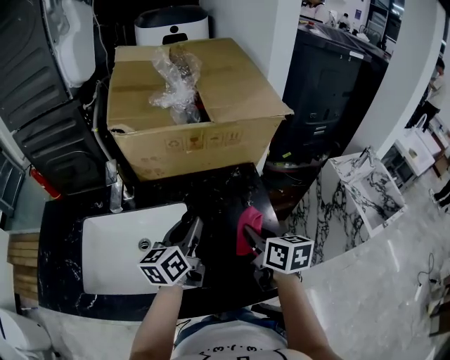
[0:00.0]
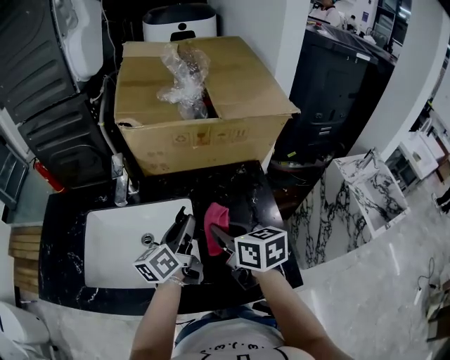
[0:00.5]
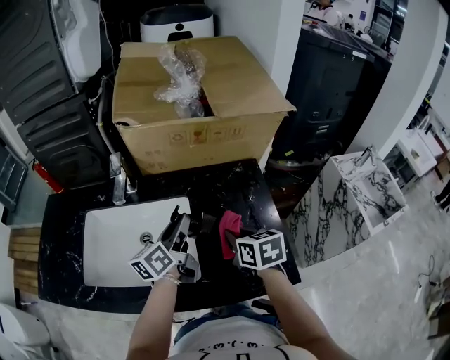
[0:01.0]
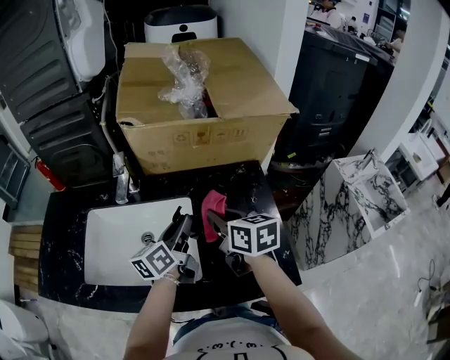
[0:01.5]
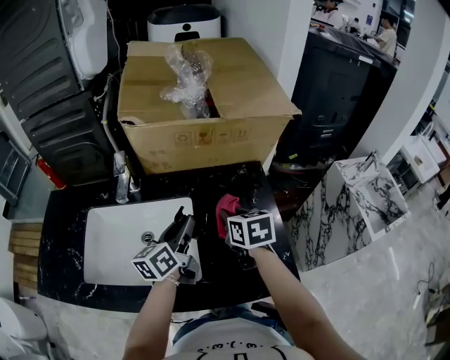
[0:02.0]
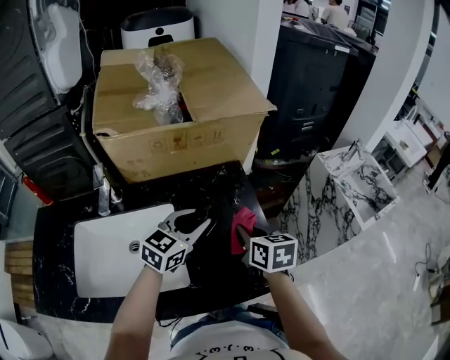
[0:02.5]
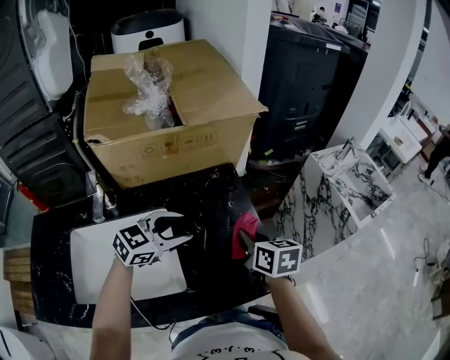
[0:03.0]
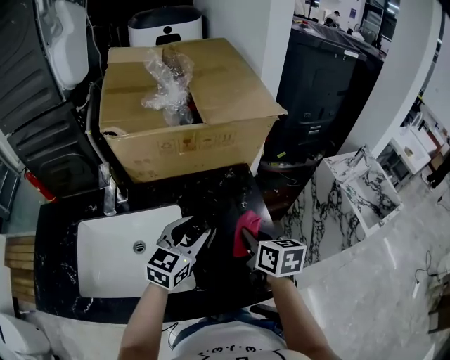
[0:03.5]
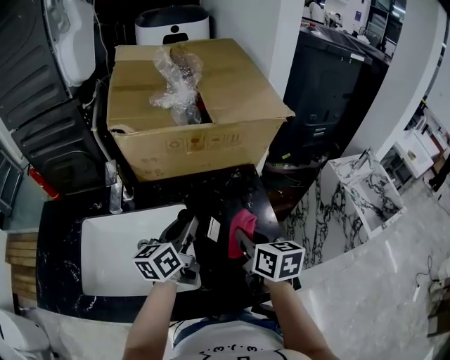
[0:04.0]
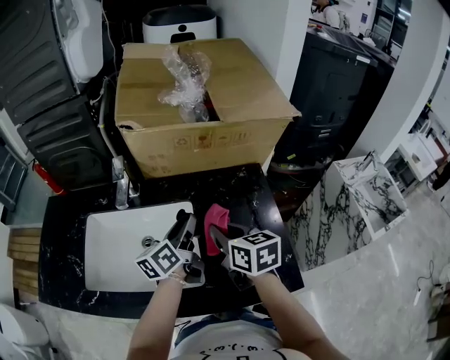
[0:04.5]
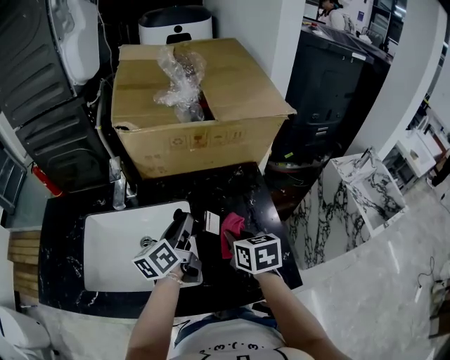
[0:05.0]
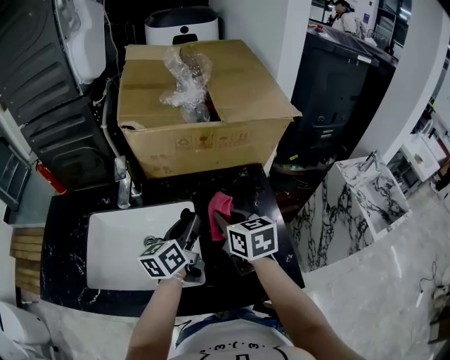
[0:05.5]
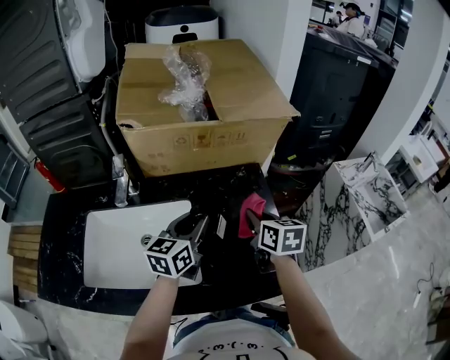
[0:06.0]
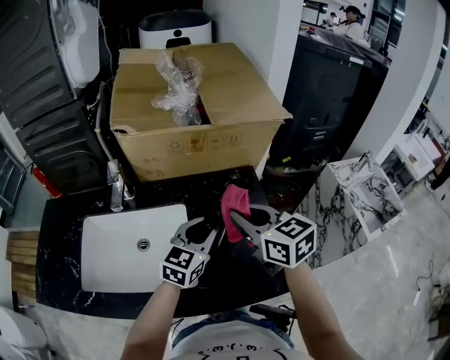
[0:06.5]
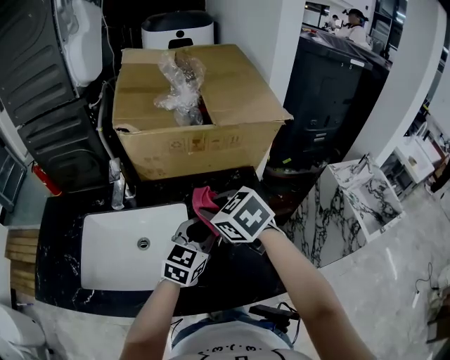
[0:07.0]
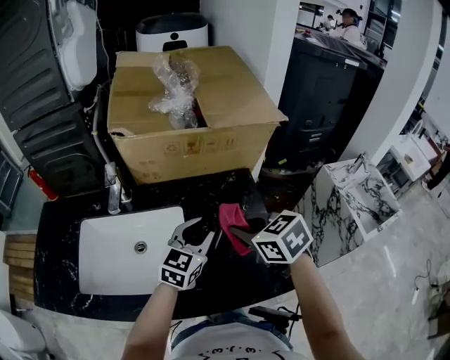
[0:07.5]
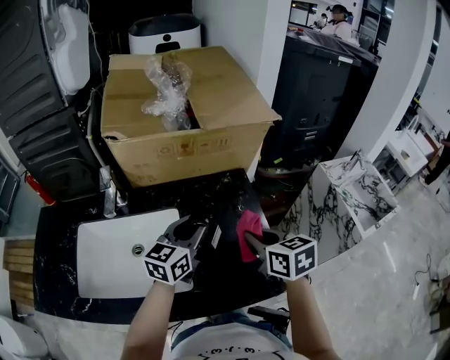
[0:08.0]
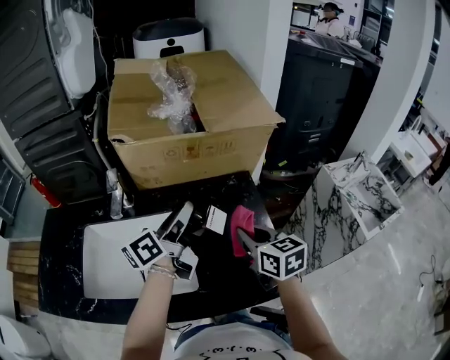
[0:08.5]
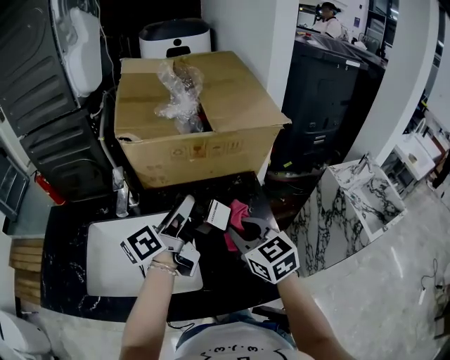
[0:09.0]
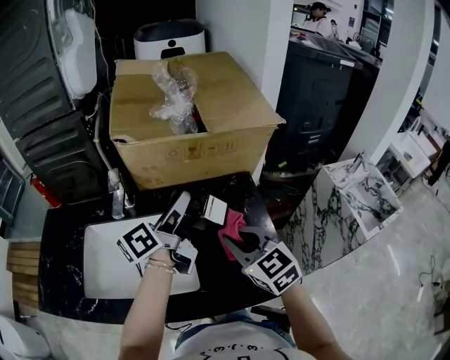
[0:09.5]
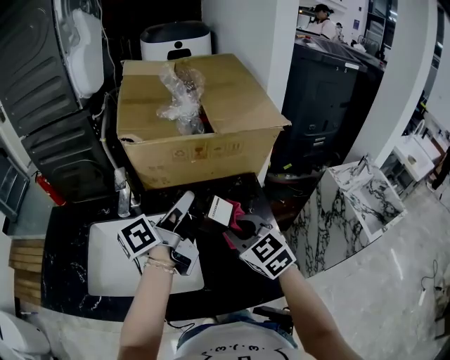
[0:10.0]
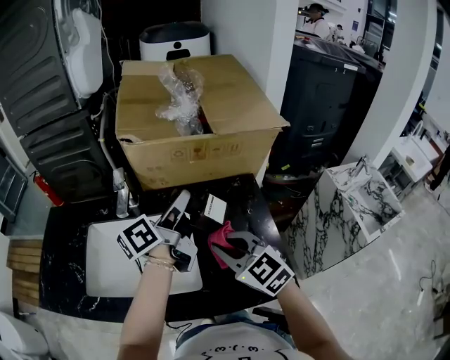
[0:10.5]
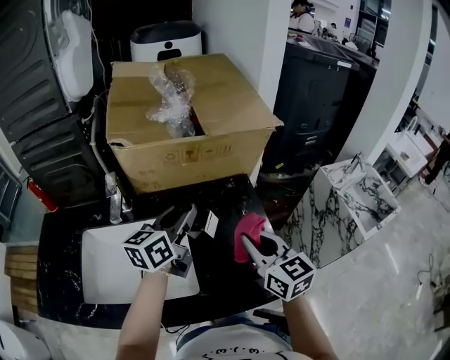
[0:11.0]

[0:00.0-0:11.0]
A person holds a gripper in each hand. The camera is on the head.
0:00.0 to 0:02.0: The right gripper swings left and right, some 10 cm each way, with 2 reversals.
0:02.0 to 0:03.5: The right gripper moves about 10 cm, while the left gripper changes place by roughly 10 cm, and twists about 40 degrees clockwise, seen from behind.
0:03.5 to 0:05.5: The right gripper goes left and right, some 10 cm each way, reversing 2 times. The left gripper is displaced to the left by approximately 5 cm, changes its angle by roughly 40 degrees, and closes up.
0:05.5 to 0:07.5: The left gripper moves to the right, approximately 10 cm, and rotates around the line of its fingers by approximately 40 degrees, clockwise from behind; the right gripper swings left and right, about 15 cm each way, with 2 reversals, and changes its angle by approximately 20 degrees.
0:07.5 to 0:09.0: The left gripper heads upward and to the left, covering approximately 10 cm, and rolls counterclockwise, seen from behind, by about 60 degrees, while the right gripper reaches some 5 cm to the right, then returns, and rotates roughly 20 degrees.
0:09.0 to 0:11.0: The right gripper is displaced to the right by roughly 5 cm. The left gripper turns by roughly 30 degrees.

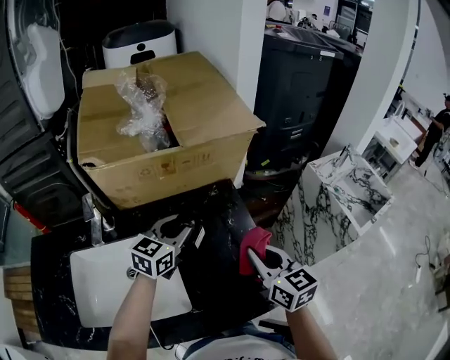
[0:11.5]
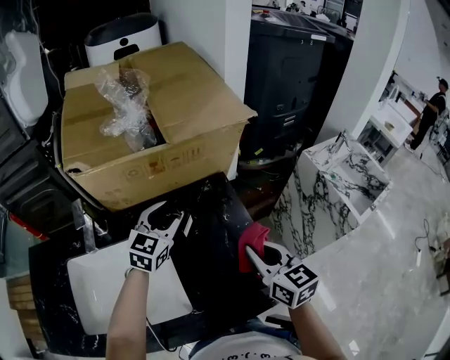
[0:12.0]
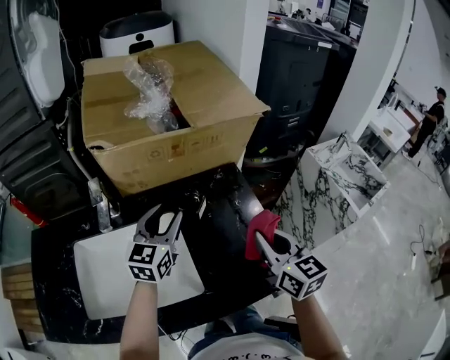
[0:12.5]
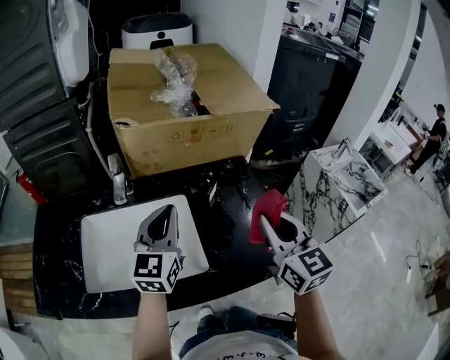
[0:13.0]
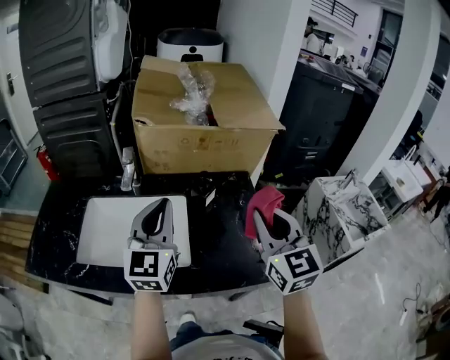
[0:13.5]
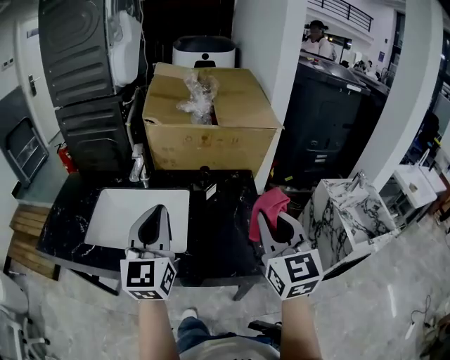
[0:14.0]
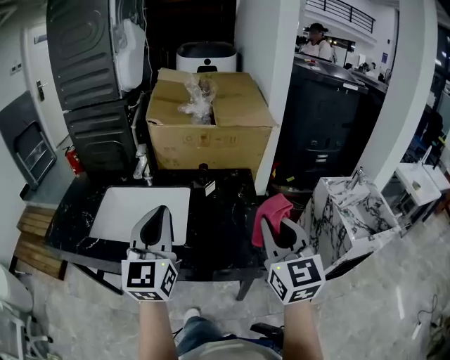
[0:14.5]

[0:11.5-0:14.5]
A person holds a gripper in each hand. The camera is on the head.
0:11.5 to 0:13.0: The left gripper goes some 20 cm backward, to the left and upward, rotates some 30 degrees, and closes up. The right gripper moves upward and backward, some 10 cm.
0:13.0 to 0:14.5: The left gripper heads backward and upward, covering about 20 cm, and turns by approximately 20 degrees, while the right gripper is displaced backward, to the right and upward by about 15 cm.

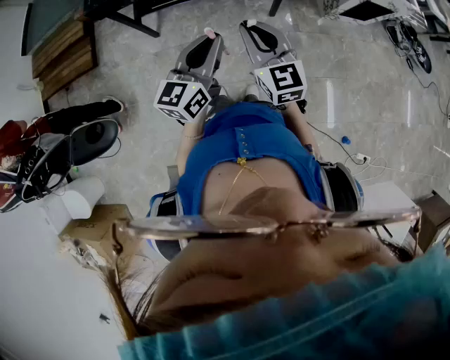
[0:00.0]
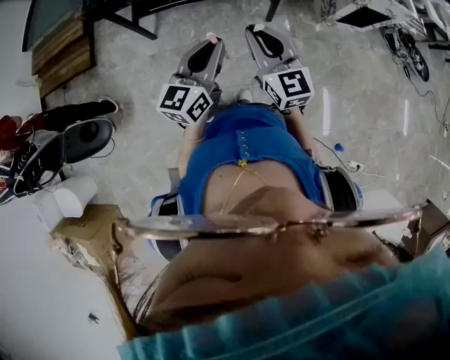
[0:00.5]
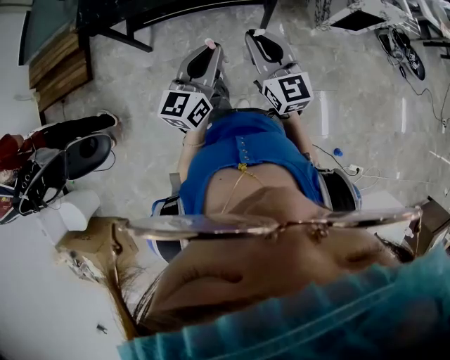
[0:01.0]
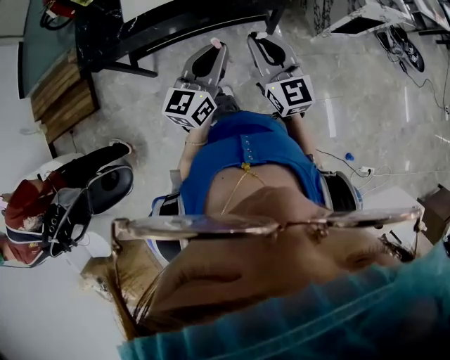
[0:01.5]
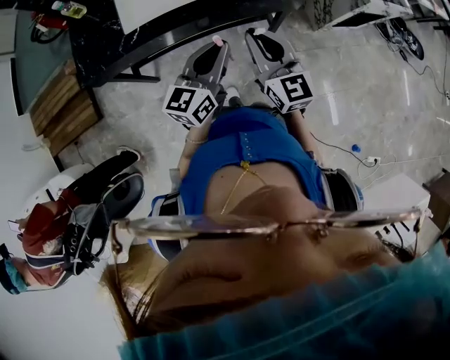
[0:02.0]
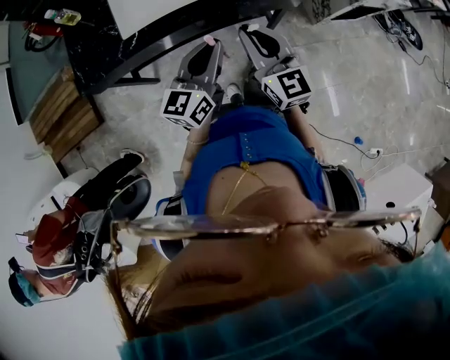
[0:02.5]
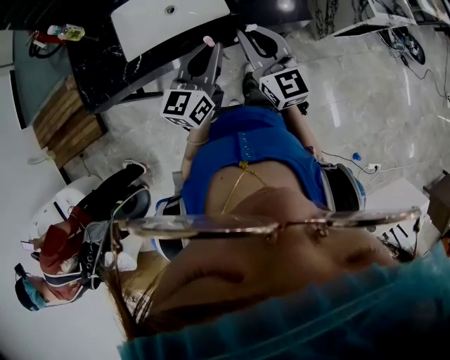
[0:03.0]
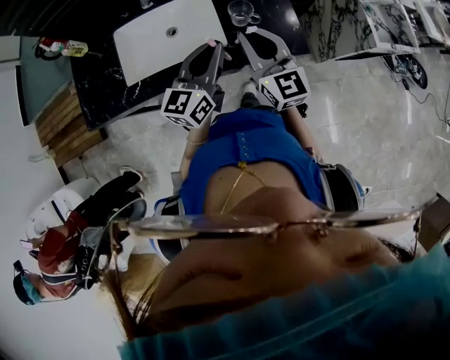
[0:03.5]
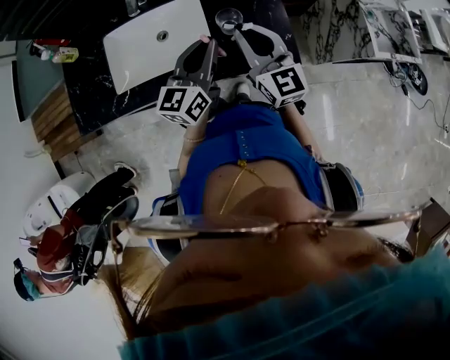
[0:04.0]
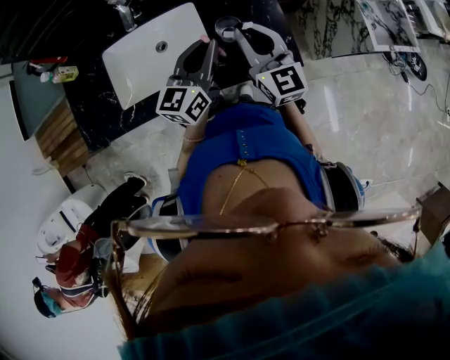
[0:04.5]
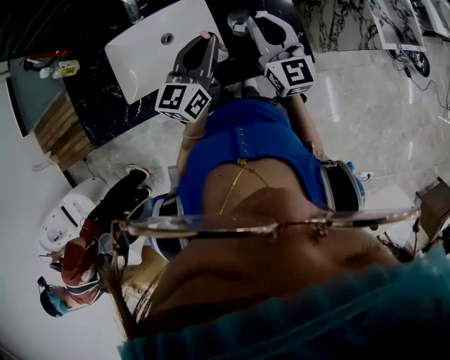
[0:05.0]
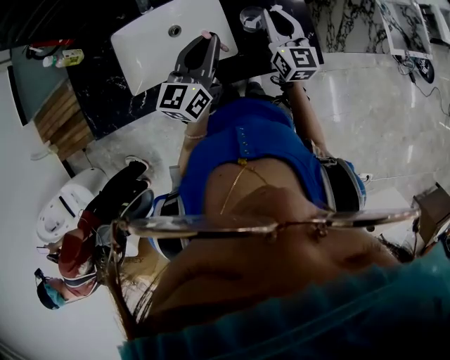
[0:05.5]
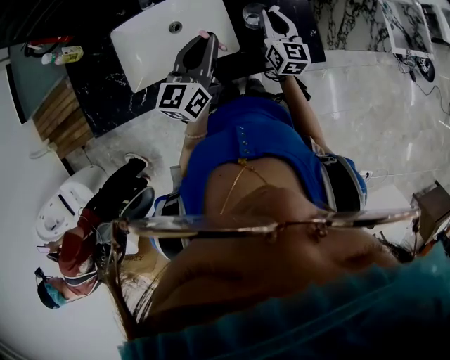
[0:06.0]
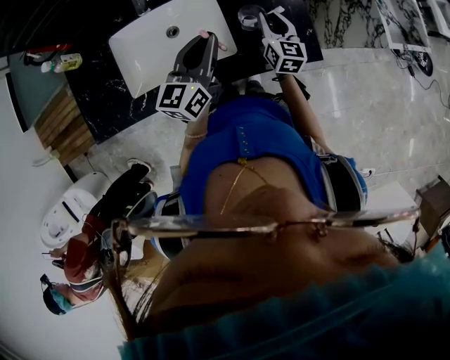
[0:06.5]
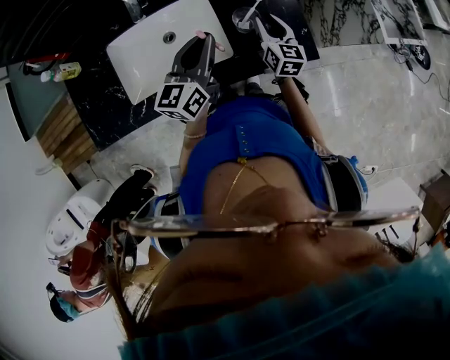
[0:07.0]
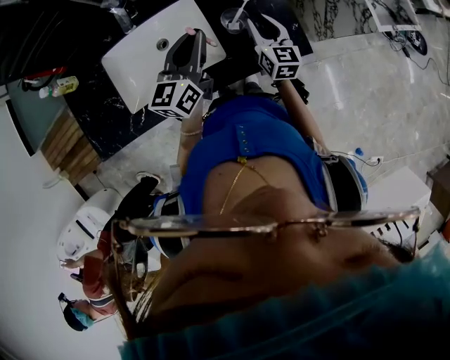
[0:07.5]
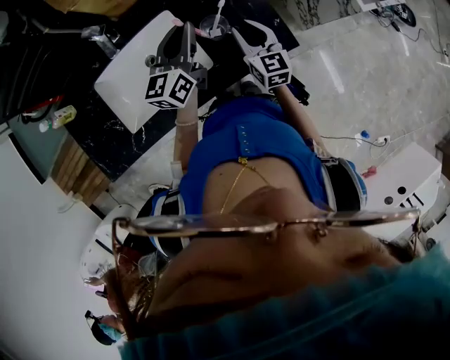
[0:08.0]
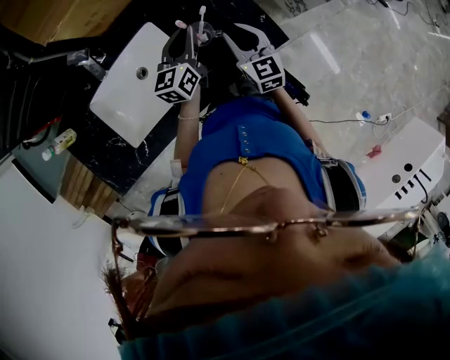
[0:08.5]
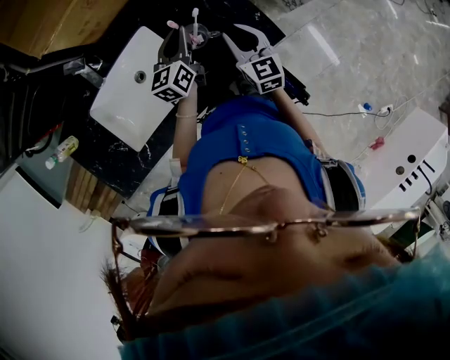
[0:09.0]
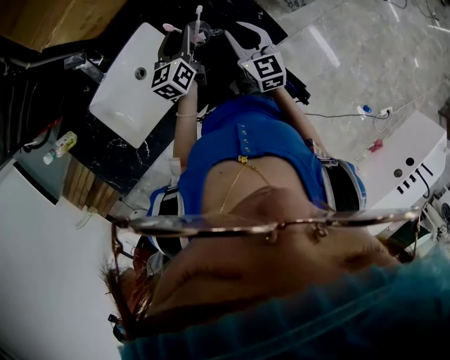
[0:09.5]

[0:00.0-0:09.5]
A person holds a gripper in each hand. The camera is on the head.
0:00.0 to 0:02.0: Both grippers travel together forward, some 25 cm.
0:02.0 to 0:04.0: The two grippers go roughly 30 cm forward.
0:04.0 to 0:05.5: The left gripper travels to the left by approximately 10 cm; the right gripper shifts approximately 15 cm forward and downward.
0:05.5 to 0:07.5: The right gripper moves downward, approximately 5 cm, and opens up.
0:07.5 to 0:09.5: The left gripper moves downward, forward and to the right, approximately 15 cm, and opens up.

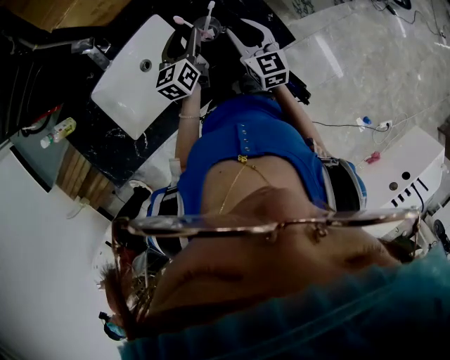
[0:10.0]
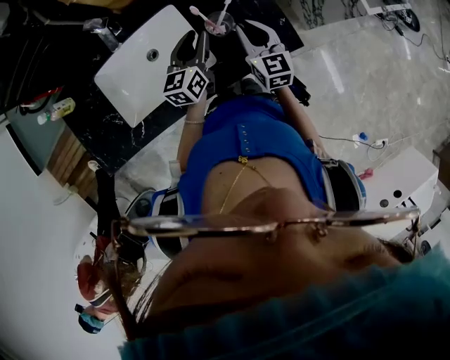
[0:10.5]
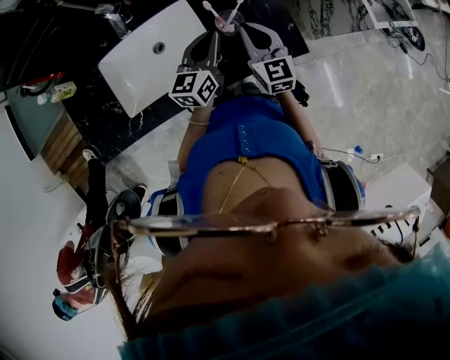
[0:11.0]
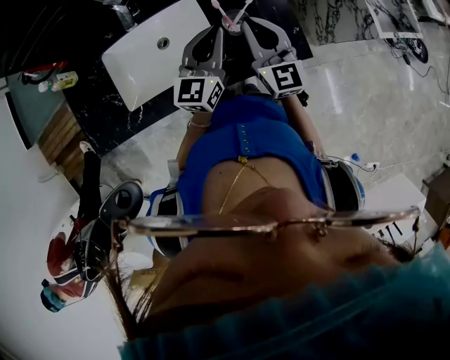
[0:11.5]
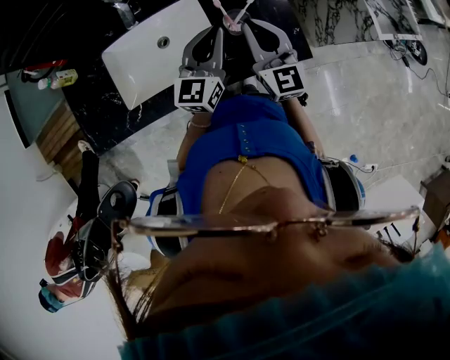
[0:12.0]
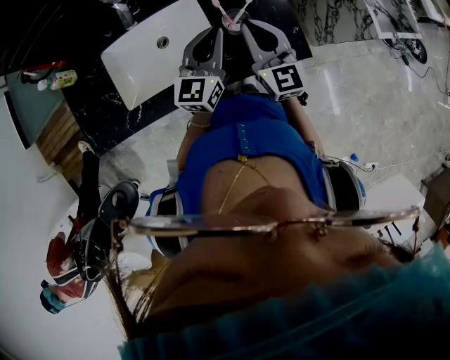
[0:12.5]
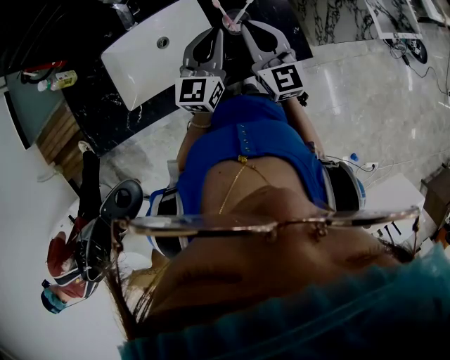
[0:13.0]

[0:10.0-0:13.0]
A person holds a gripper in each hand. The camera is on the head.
0:10.0 to 0:11.5: The left gripper heads upward and backward, covering roughly 15 cm, changes its angle by roughly 20 degrees, and closes up; the right gripper shifts some 10 cm upward and to the left, turns by about 20 degrees, and closes up.
0:11.5 to 0:13.0: Both grippers stay put.
